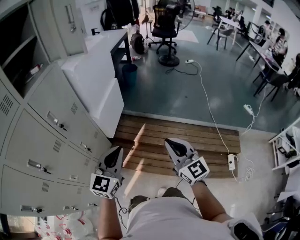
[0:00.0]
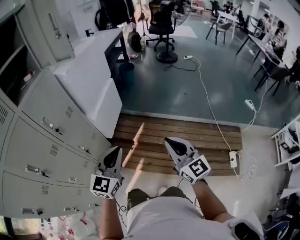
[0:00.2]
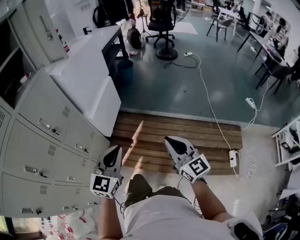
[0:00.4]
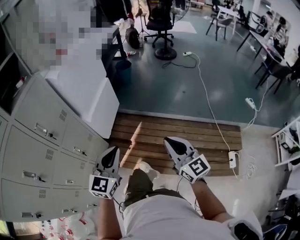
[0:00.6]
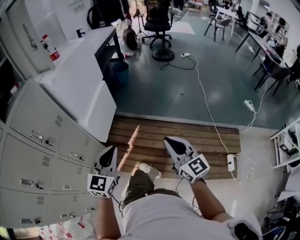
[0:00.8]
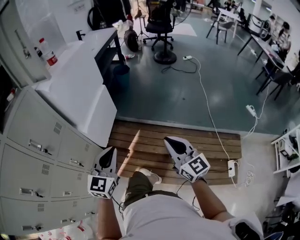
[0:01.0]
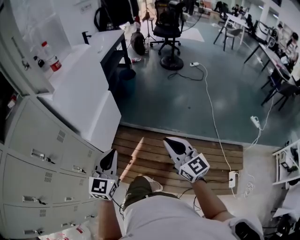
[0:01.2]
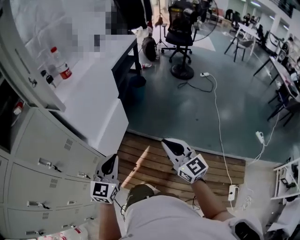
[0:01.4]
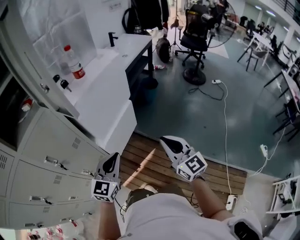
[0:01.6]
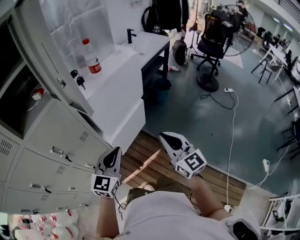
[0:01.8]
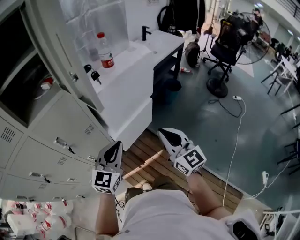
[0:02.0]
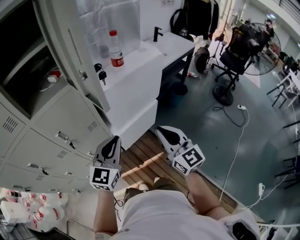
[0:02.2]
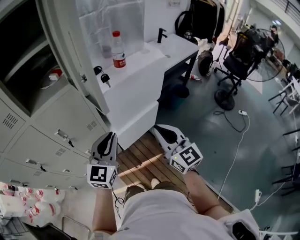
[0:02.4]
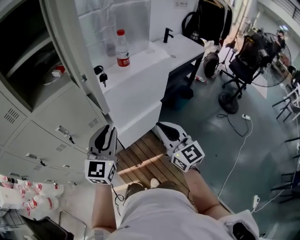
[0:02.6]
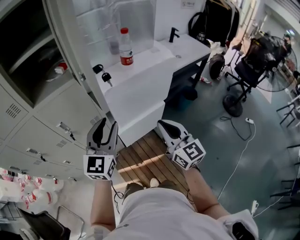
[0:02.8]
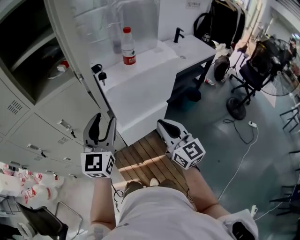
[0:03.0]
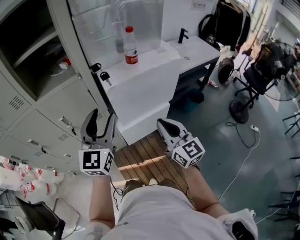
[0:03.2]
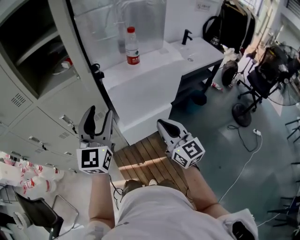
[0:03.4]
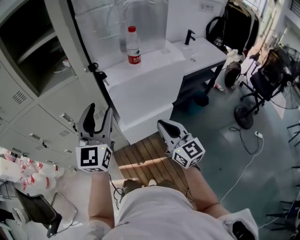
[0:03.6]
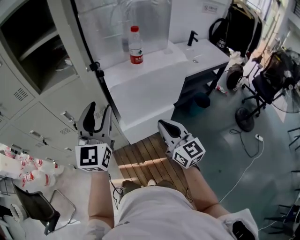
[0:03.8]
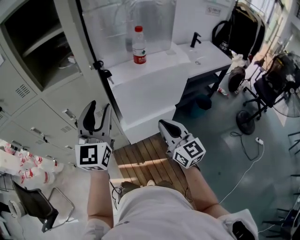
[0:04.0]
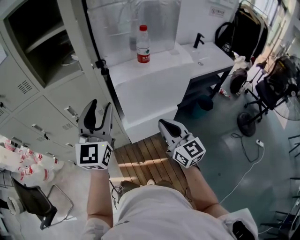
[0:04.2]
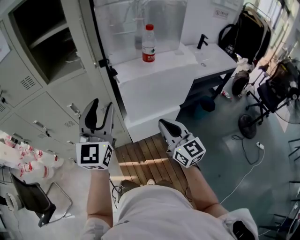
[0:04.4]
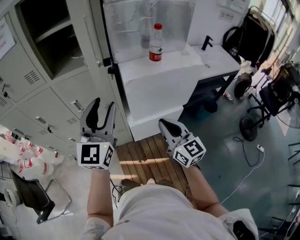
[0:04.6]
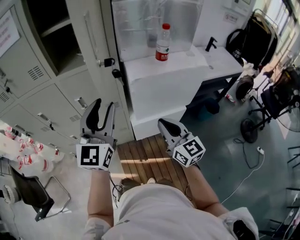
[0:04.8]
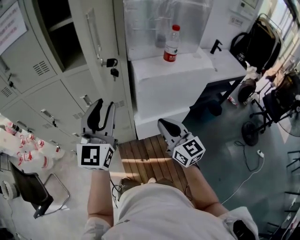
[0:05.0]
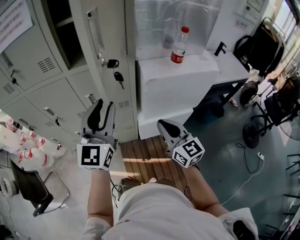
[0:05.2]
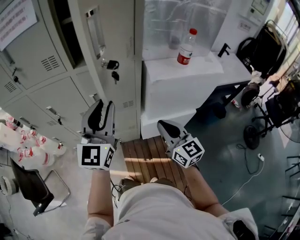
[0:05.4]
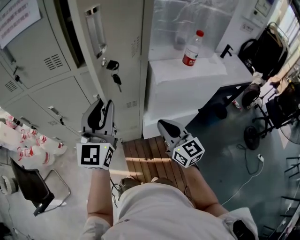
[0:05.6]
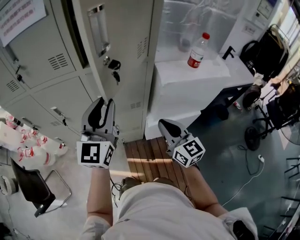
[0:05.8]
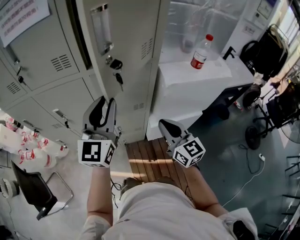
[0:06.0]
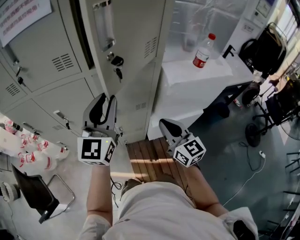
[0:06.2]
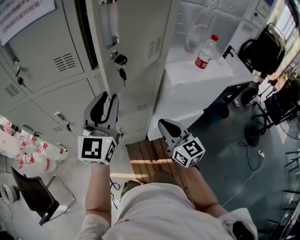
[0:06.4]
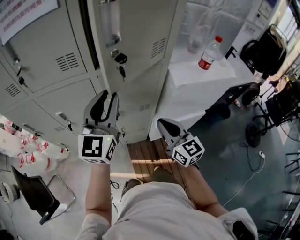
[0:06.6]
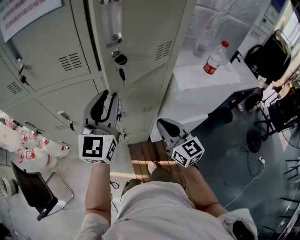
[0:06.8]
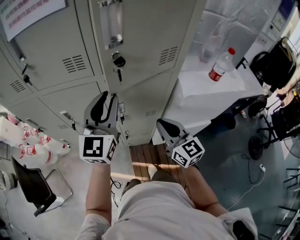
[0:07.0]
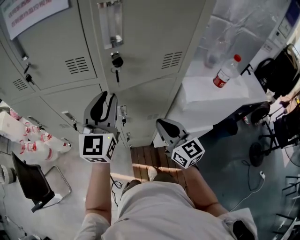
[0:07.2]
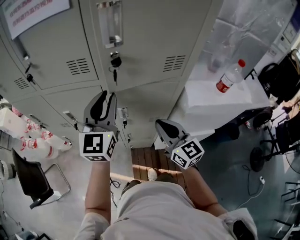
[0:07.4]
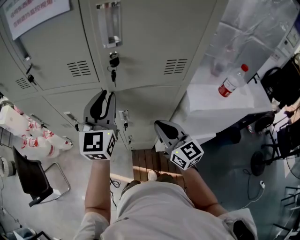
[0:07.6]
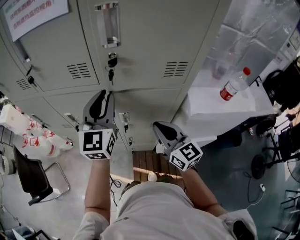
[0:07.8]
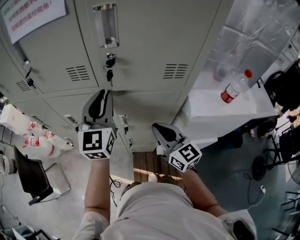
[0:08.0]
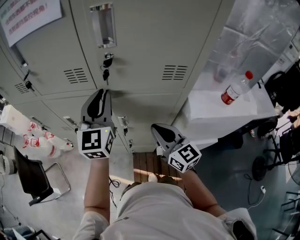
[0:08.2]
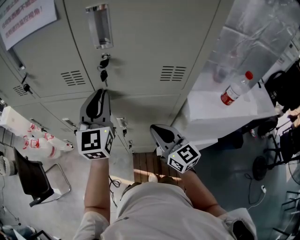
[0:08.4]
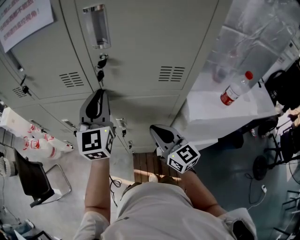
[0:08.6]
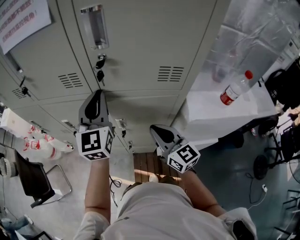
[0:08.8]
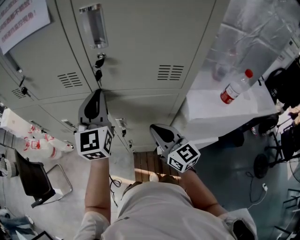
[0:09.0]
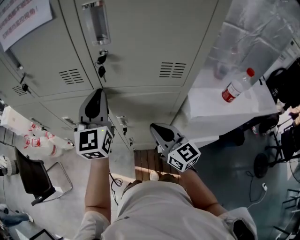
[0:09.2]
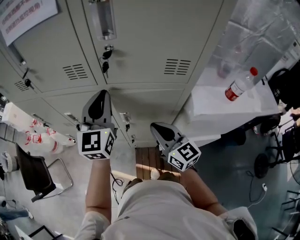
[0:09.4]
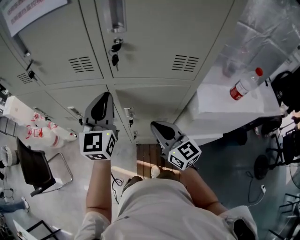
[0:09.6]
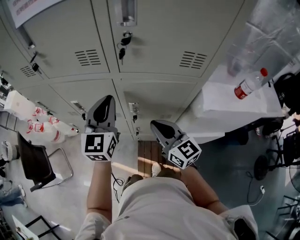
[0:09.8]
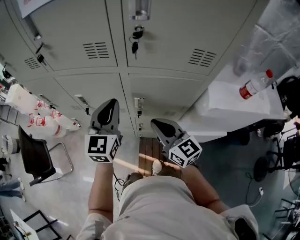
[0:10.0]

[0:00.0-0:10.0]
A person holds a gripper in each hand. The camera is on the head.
0:00.0 to 0:01.4: The two grippers go some 30 cm forward.
0:01.4 to 0:02.8: The left gripper travels upward by some 15 cm, rotates some 40 degrees, and opens. The right gripper changes place by approximately 25 cm, and changes its angle by approximately 30 degrees.
0:02.8 to 0:04.2: The left gripper shifts approximately 5 cm upward.
0:04.2 to 0:05.8: The grippers both shift to the left by roughly 20 cm. The left gripper closes its fingers.
0:05.8 to 0:07.2: Both grippers move forward and to the left, about 10 cm.
0:07.2 to 0:08.6: The two grippers go some 5 cm forward.
0:08.6 to 0:10.0: The left gripper goes approximately 10 cm downward, to the left and backward. The right gripper travels to the left by roughly 10 cm.

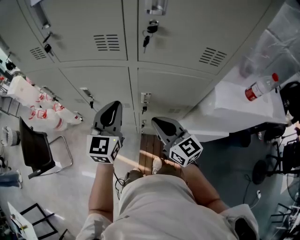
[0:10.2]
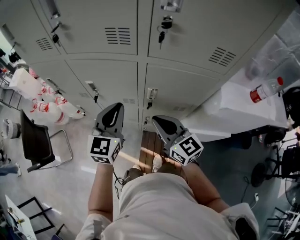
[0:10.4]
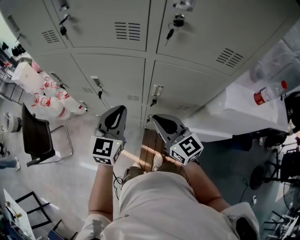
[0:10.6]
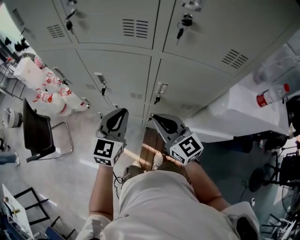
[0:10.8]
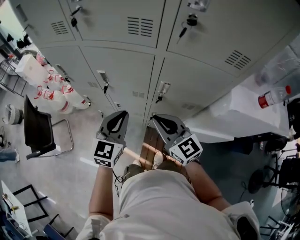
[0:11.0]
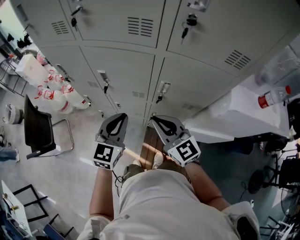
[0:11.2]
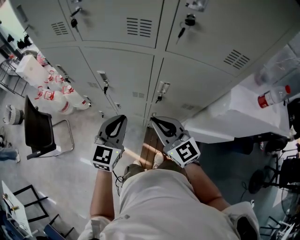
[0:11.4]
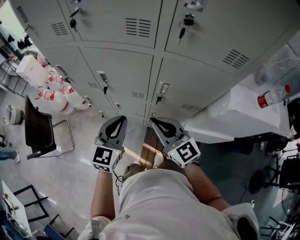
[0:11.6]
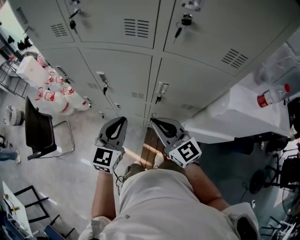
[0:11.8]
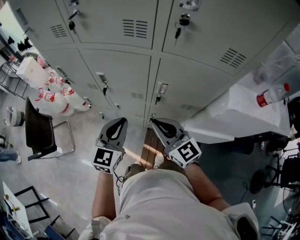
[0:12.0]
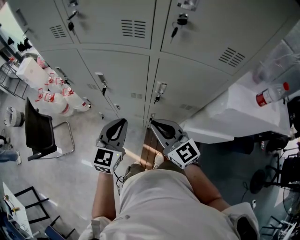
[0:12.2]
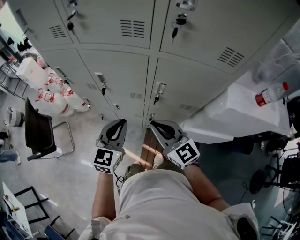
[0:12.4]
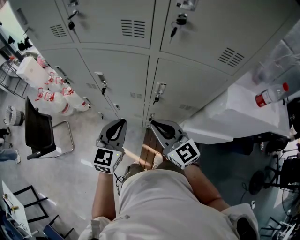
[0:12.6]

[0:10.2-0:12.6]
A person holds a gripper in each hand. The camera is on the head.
0:10.2 to 0:11.4: The left gripper shifts roughly 10 cm backward, downward and to the left; the right gripper moves to the left, approximately 5 cm.
0:11.4 to 0:12.6: The grippers move only a little.

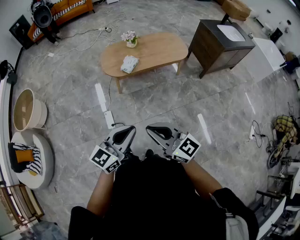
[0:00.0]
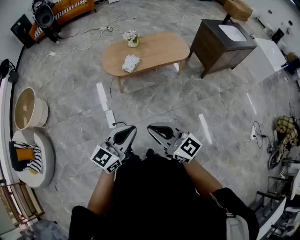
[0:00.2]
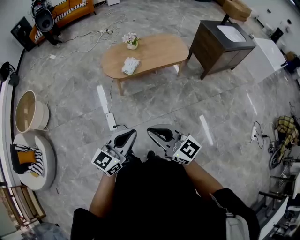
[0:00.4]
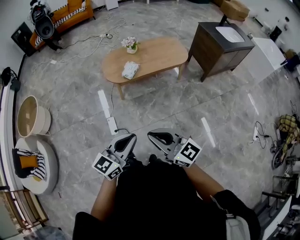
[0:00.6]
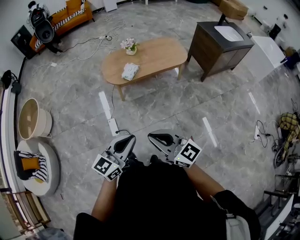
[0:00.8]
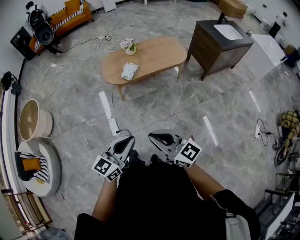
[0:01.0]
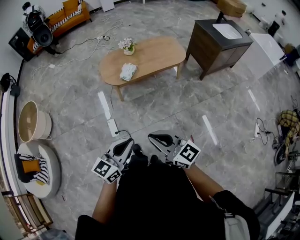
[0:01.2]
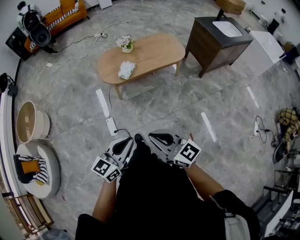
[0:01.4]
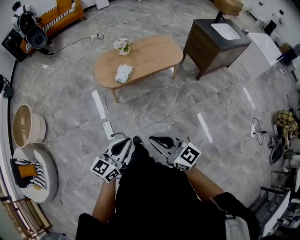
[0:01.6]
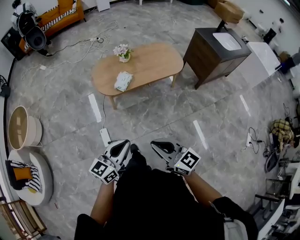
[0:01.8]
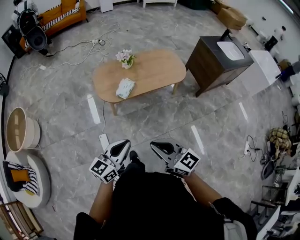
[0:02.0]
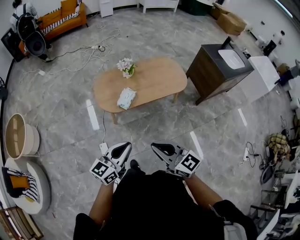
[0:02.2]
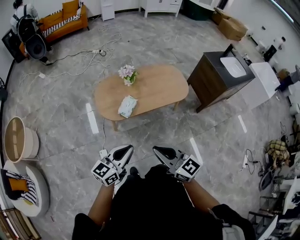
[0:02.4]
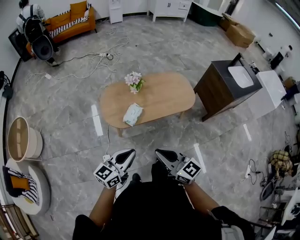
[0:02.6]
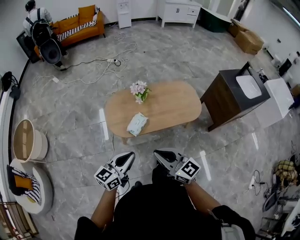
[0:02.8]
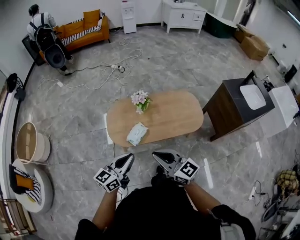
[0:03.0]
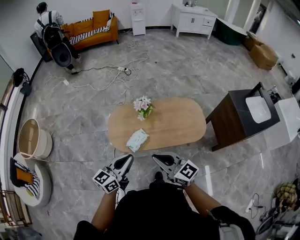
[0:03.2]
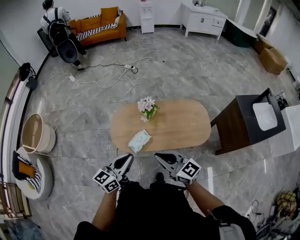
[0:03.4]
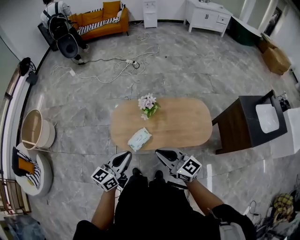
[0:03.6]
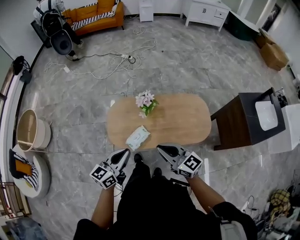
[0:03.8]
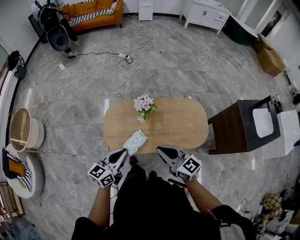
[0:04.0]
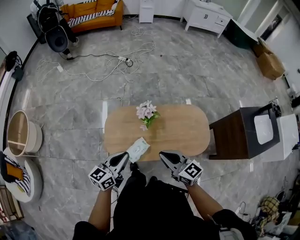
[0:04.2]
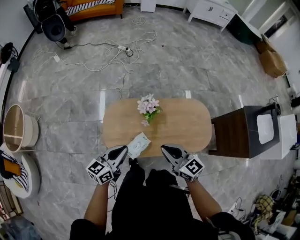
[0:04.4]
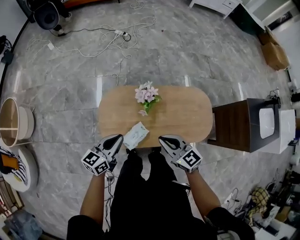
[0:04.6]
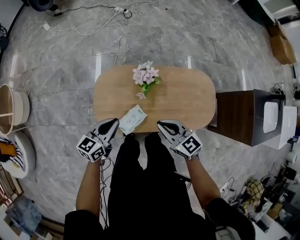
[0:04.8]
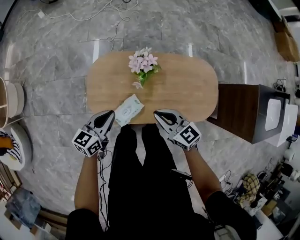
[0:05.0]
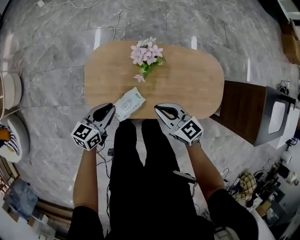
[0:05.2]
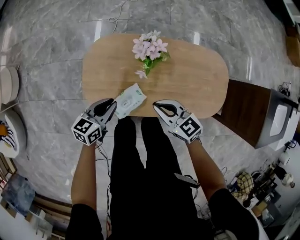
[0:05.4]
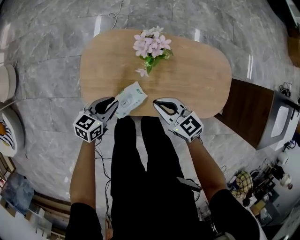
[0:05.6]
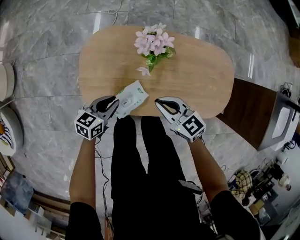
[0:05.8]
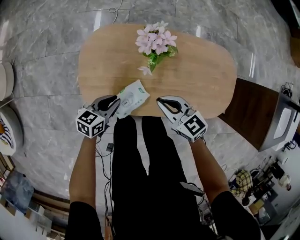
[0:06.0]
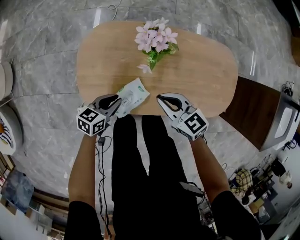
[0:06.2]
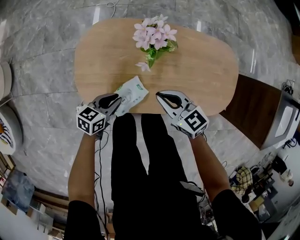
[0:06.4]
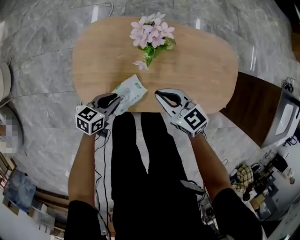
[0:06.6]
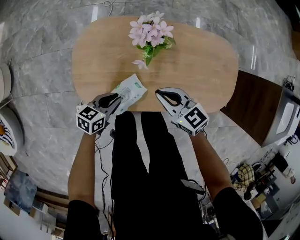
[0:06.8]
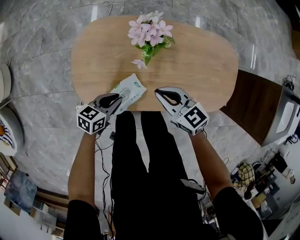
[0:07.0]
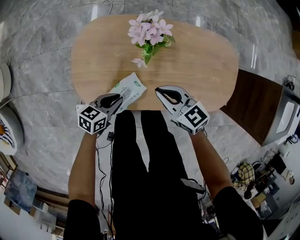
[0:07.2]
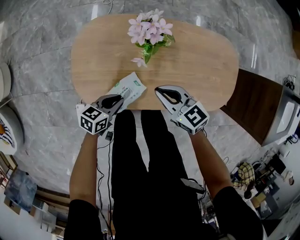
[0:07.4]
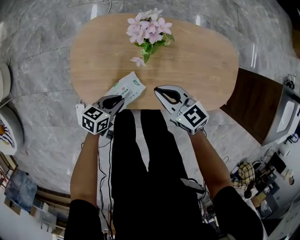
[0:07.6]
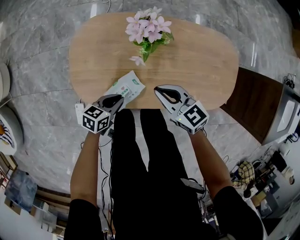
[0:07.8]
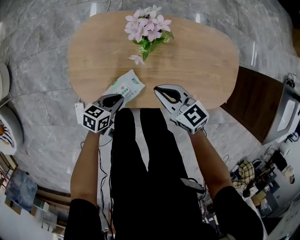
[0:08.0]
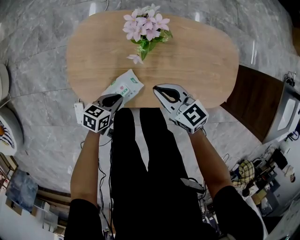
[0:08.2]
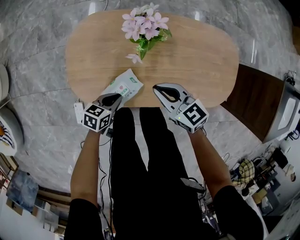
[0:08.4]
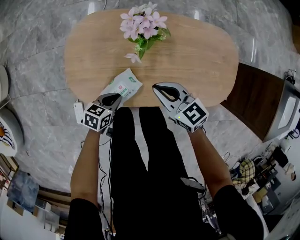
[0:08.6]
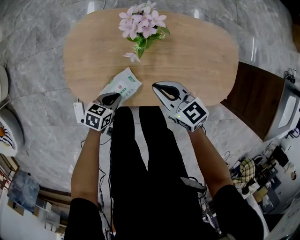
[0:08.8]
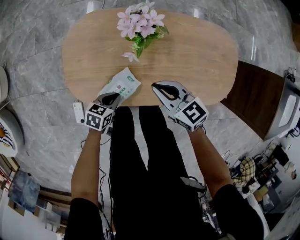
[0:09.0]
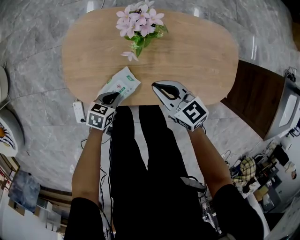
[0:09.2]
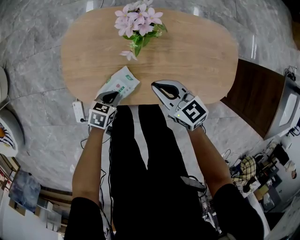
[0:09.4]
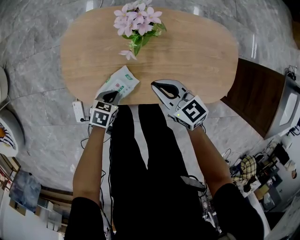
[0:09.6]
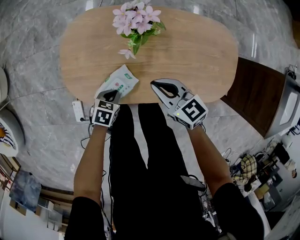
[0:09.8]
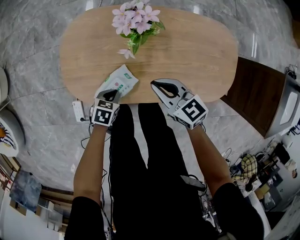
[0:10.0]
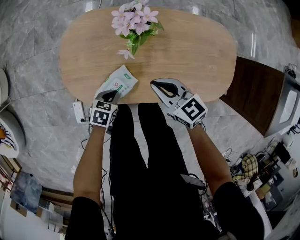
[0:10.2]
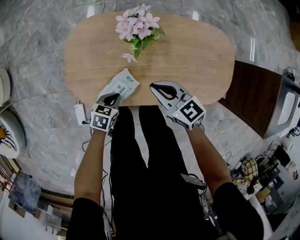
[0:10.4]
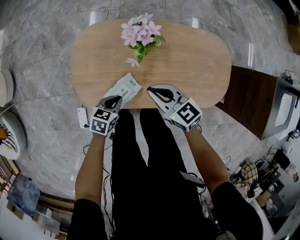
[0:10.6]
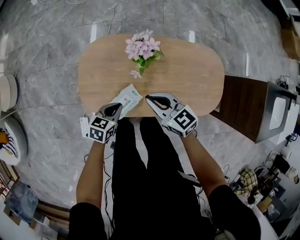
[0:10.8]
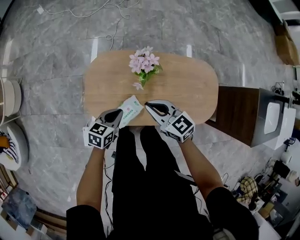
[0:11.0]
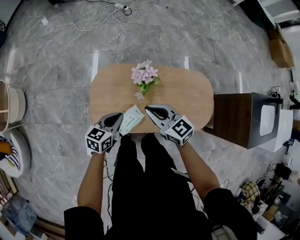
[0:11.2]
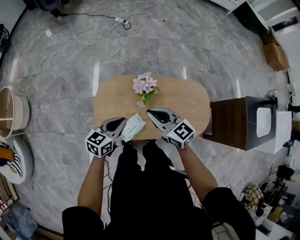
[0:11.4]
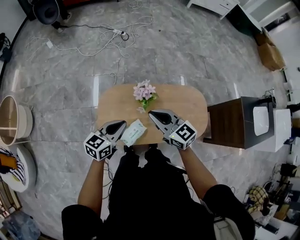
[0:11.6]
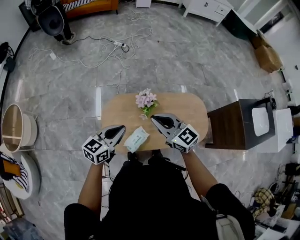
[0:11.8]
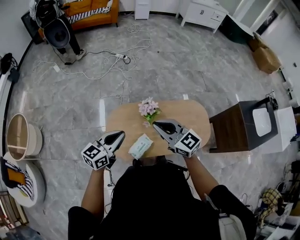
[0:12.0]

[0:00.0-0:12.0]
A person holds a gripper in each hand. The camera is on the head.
0:00.0 to 0:01.6: The left gripper heads forward and downward, covering roughly 10 cm. Meanwhile the right gripper ends up some 5 cm from where it was.
0:01.6 to 0:03.0: The pair of grippers is taken forward, some 40 cm.
0:03.0 to 0:04.4: Both grippers travel together forward, roughly 25 cm.
0:04.4 to 0:06.0: Both grippers travel together downward, approximately 30 cm. The left gripper turns by some 30 degrees. Meanwhile the right gripper rotates about 20 degrees.
0:06.0 to 0:07.6: The left gripper shifts by about 5 cm.
0:07.6 to 0:09.0: The grippers move only a little.
0:09.0 to 0:10.4: There are only small adjustments of the grippers.
0:10.4 to 0:12.0: Both grippers move upward, roughly 40 cm. The right gripper changes its angle by some 30 degrees. Meanwhile the left gripper tilts its fingers roughly 50 degrees upward.
